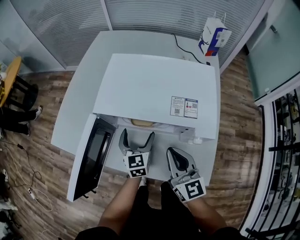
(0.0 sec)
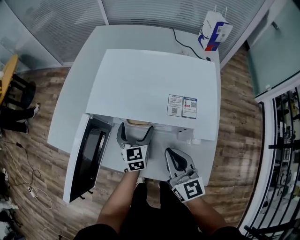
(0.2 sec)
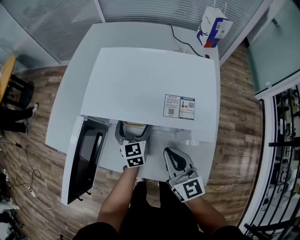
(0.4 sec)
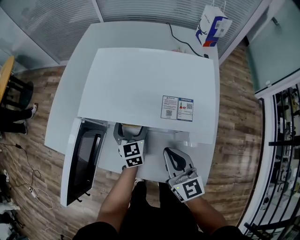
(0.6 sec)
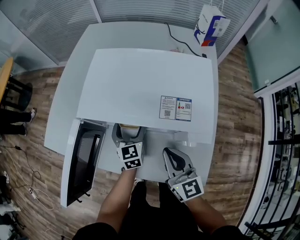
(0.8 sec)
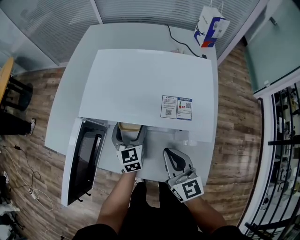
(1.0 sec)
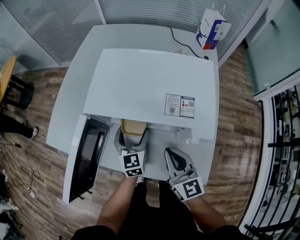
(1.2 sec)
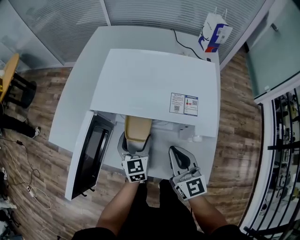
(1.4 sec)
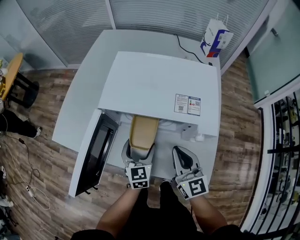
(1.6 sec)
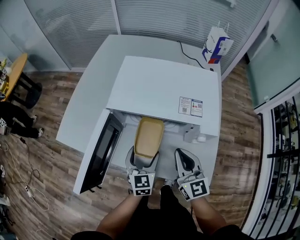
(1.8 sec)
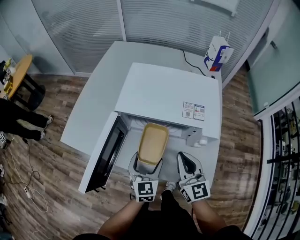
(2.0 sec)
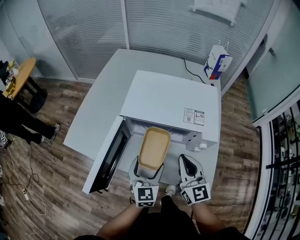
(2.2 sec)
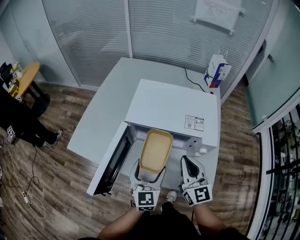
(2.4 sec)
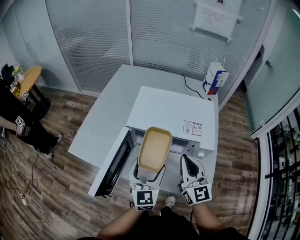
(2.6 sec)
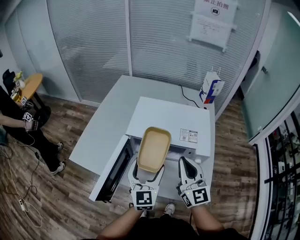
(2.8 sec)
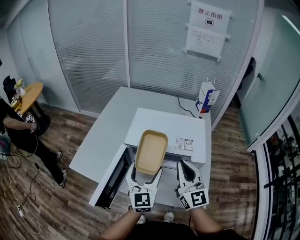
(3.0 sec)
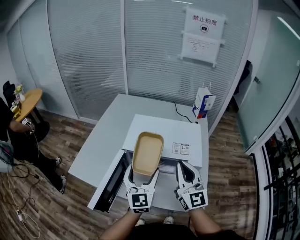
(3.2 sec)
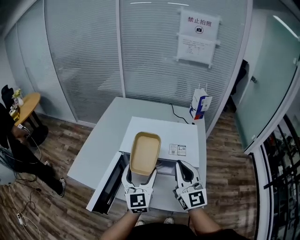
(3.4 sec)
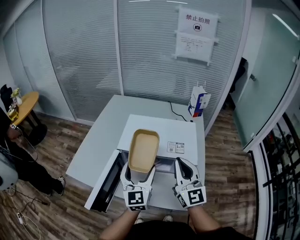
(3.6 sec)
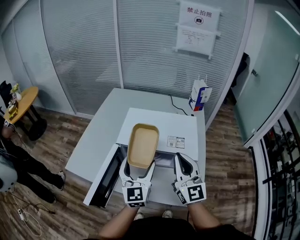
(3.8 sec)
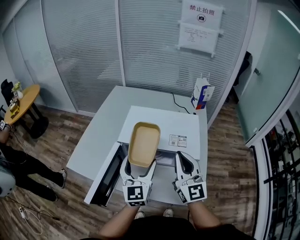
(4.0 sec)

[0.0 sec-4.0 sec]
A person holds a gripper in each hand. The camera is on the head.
0.0 sec to 1.4 sec: The grippers make only small movements.
1.4 sec to 2.6 sec: The left gripper is displaced upward and backward by approximately 20 cm; the right gripper shifts some 10 cm upward.
2.6 sec to 4.0 sec: The grippers both shift upward by some 10 cm.

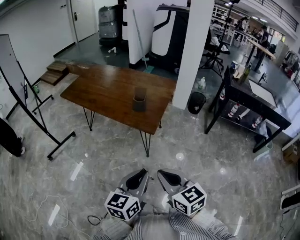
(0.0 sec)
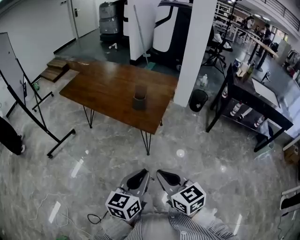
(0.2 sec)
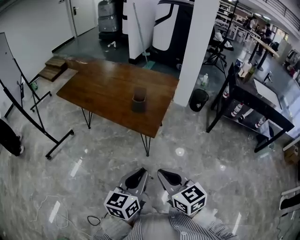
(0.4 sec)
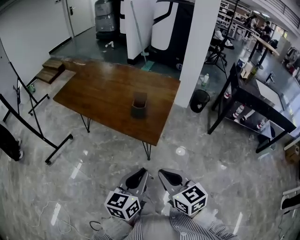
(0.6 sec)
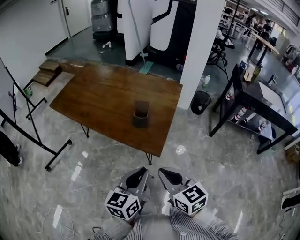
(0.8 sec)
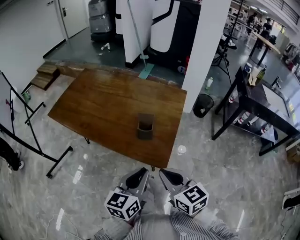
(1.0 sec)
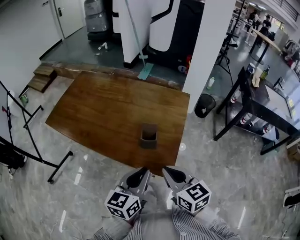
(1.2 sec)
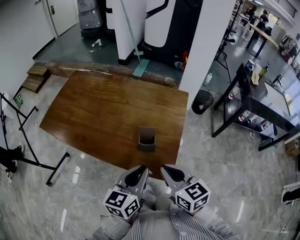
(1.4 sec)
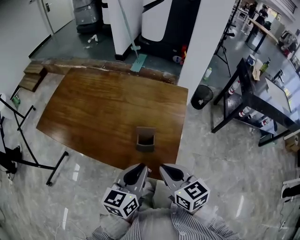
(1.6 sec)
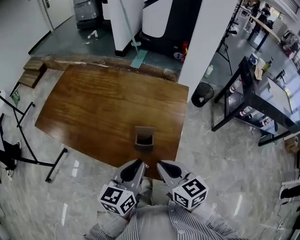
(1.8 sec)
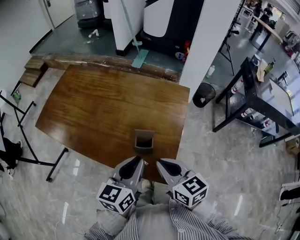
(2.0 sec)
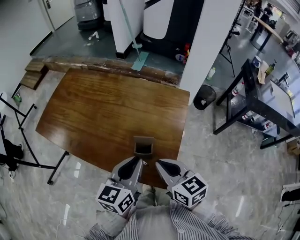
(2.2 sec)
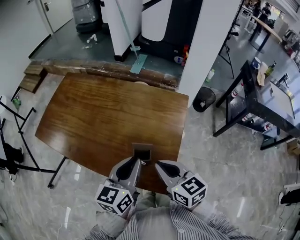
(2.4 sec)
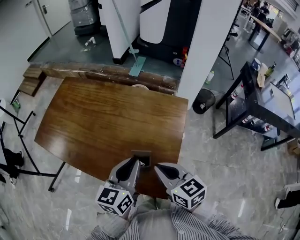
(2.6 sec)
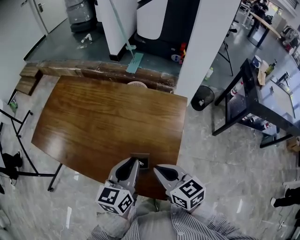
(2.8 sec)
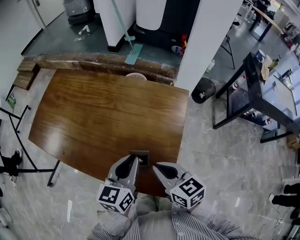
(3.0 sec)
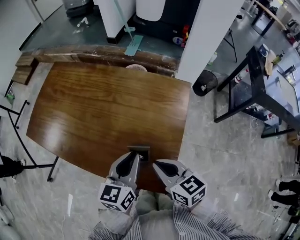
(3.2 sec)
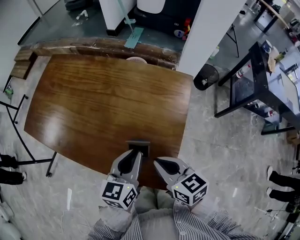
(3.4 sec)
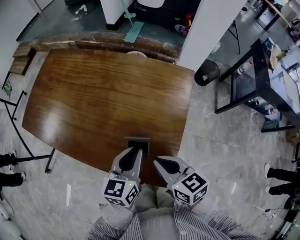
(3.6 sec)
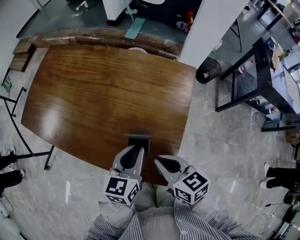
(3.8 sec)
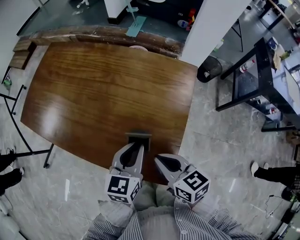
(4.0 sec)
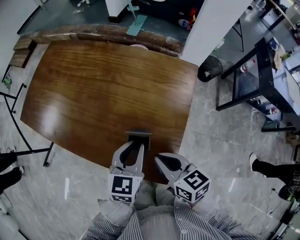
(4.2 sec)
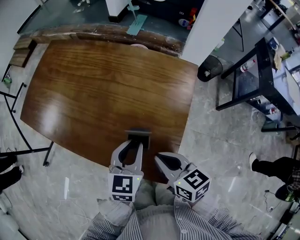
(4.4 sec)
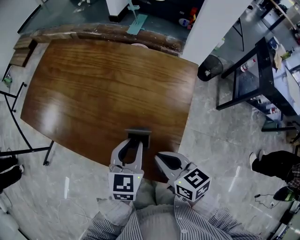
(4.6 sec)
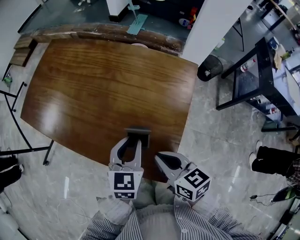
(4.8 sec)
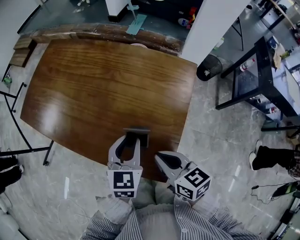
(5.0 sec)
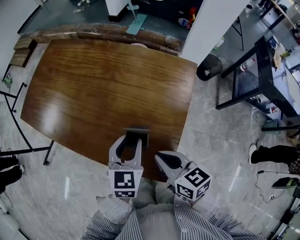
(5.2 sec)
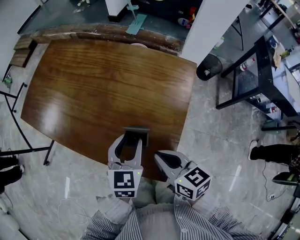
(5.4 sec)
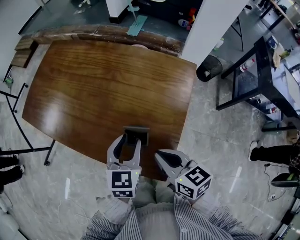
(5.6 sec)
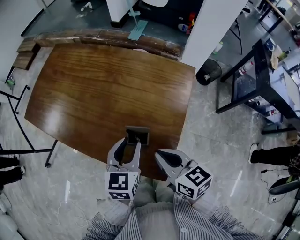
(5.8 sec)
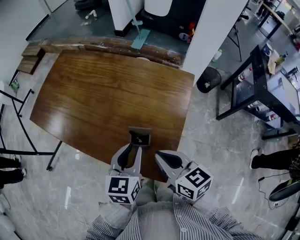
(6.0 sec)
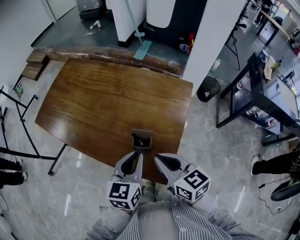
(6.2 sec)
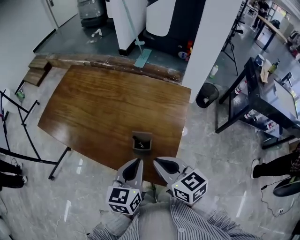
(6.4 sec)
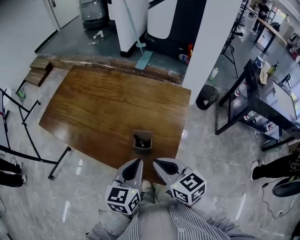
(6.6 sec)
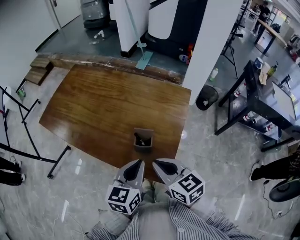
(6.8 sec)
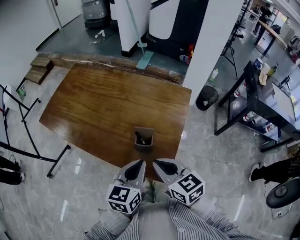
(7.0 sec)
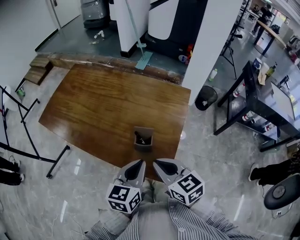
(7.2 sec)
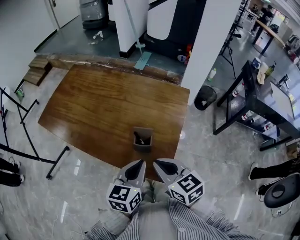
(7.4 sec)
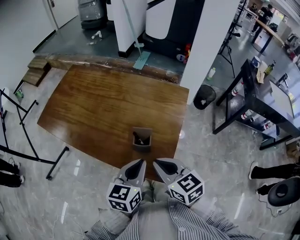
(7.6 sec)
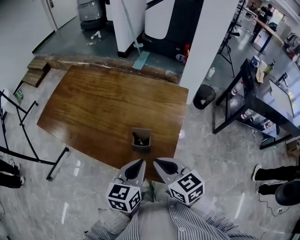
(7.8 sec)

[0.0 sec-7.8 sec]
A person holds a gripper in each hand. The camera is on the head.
0.0 sec to 1.6 sec: The grippers both shift forward by about 40 cm.
1.6 sec to 3.2 sec: The two grippers go some 10 cm forward.
3.2 sec to 4.6 sec: The left gripper heads downward, covering about 5 cm.
4.6 sec to 6.2 sec: The left gripper shifts approximately 10 cm upward and backward. Meanwhile the right gripper shifts about 5 cm upward.
6.2 sec to 7.8 sec: The grippers stay close to where they were, moving slightly.

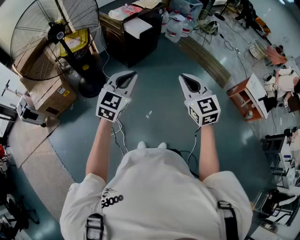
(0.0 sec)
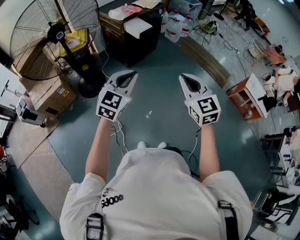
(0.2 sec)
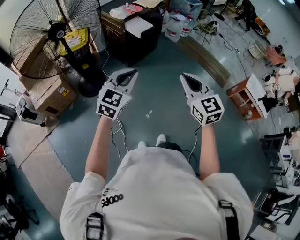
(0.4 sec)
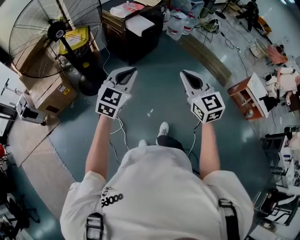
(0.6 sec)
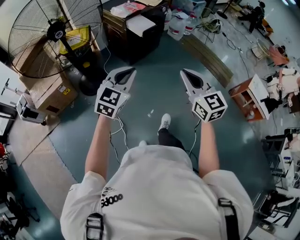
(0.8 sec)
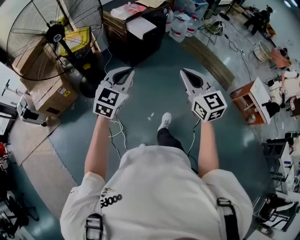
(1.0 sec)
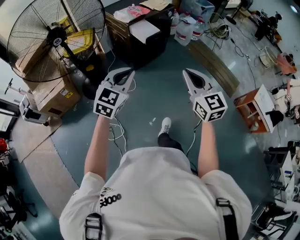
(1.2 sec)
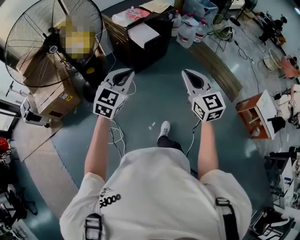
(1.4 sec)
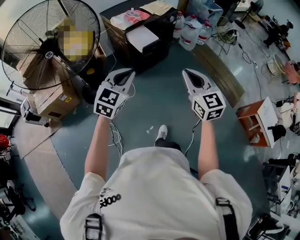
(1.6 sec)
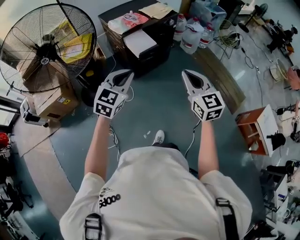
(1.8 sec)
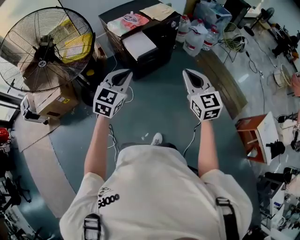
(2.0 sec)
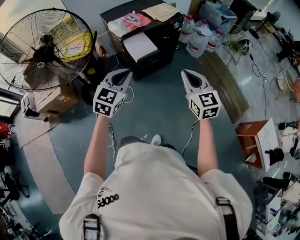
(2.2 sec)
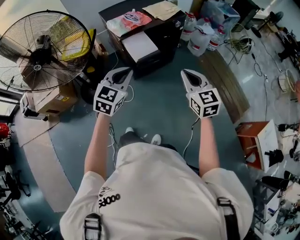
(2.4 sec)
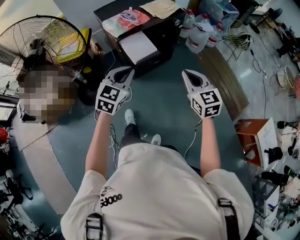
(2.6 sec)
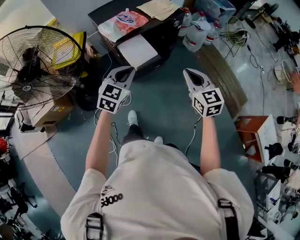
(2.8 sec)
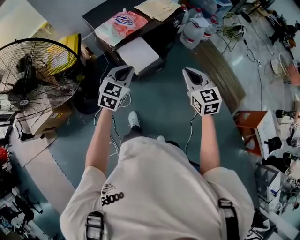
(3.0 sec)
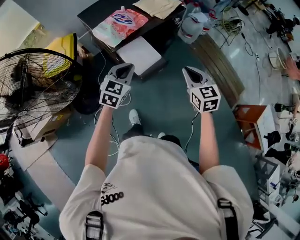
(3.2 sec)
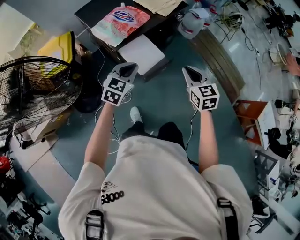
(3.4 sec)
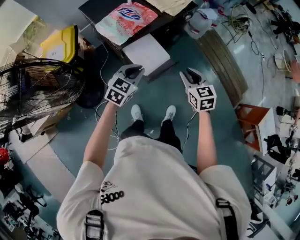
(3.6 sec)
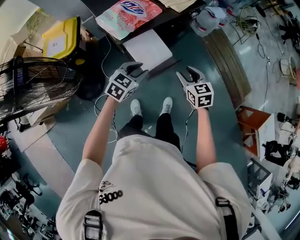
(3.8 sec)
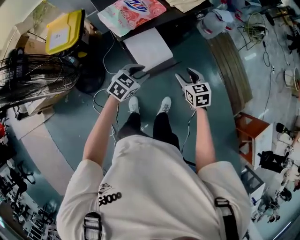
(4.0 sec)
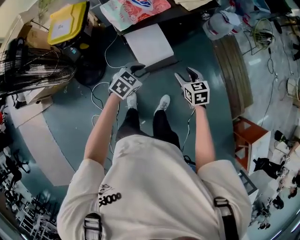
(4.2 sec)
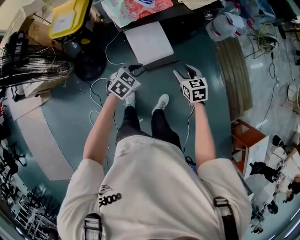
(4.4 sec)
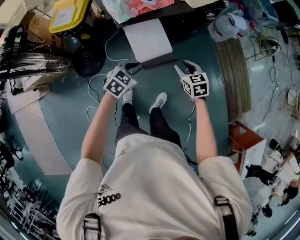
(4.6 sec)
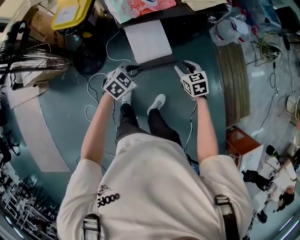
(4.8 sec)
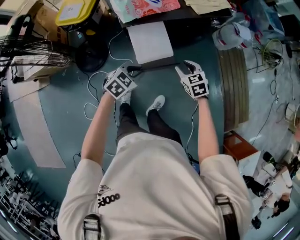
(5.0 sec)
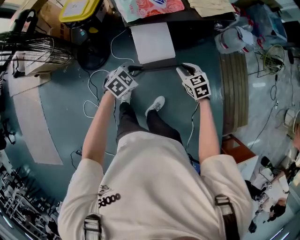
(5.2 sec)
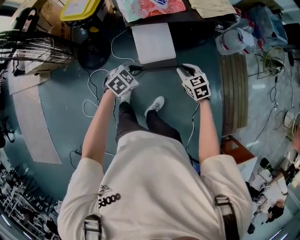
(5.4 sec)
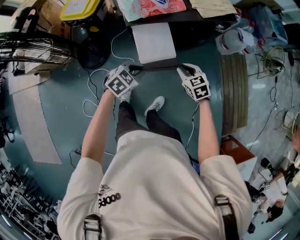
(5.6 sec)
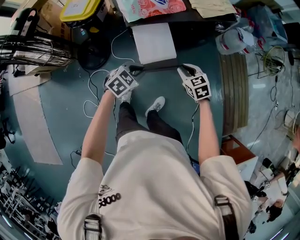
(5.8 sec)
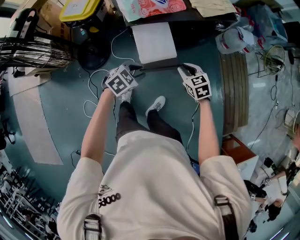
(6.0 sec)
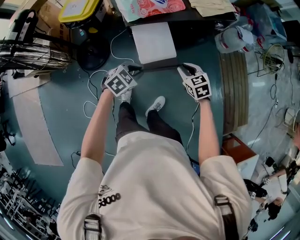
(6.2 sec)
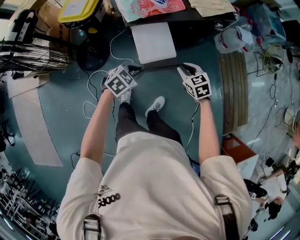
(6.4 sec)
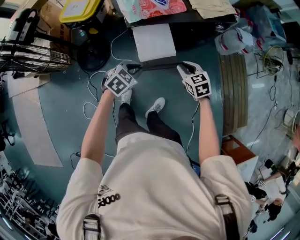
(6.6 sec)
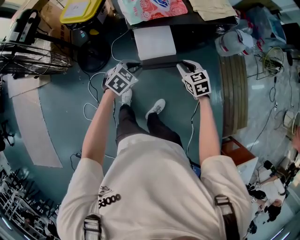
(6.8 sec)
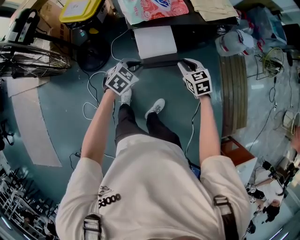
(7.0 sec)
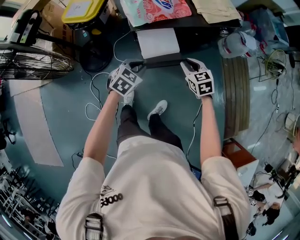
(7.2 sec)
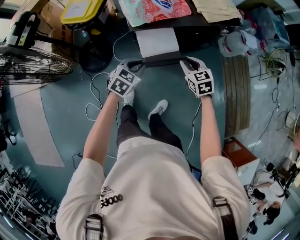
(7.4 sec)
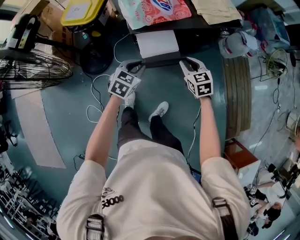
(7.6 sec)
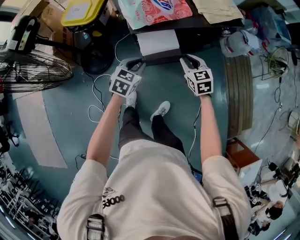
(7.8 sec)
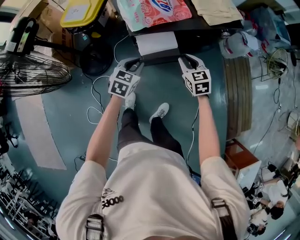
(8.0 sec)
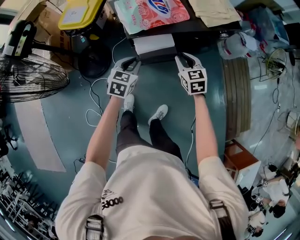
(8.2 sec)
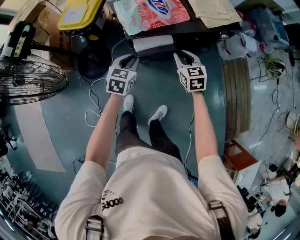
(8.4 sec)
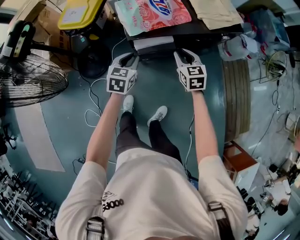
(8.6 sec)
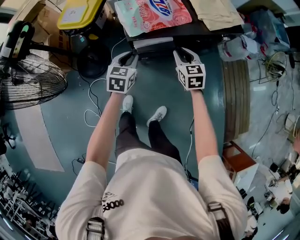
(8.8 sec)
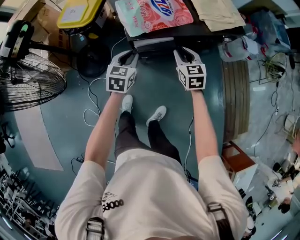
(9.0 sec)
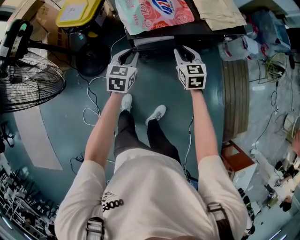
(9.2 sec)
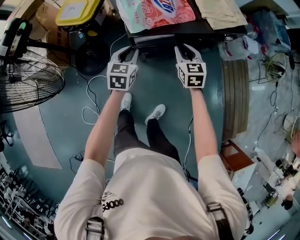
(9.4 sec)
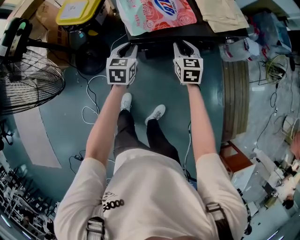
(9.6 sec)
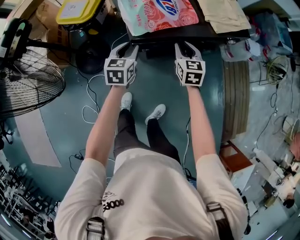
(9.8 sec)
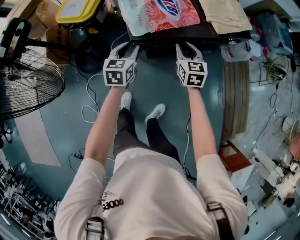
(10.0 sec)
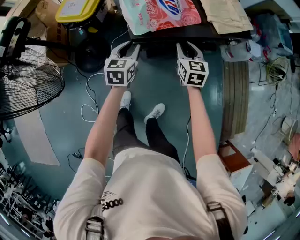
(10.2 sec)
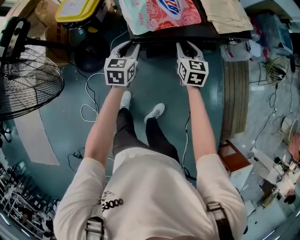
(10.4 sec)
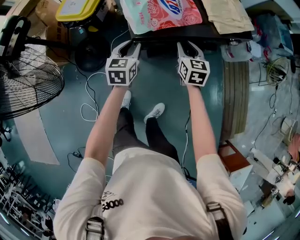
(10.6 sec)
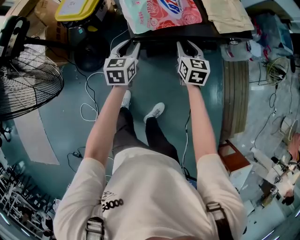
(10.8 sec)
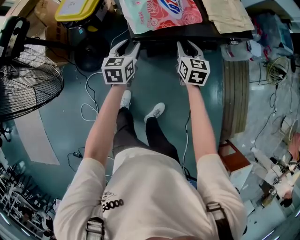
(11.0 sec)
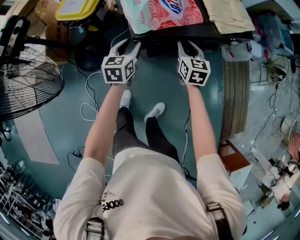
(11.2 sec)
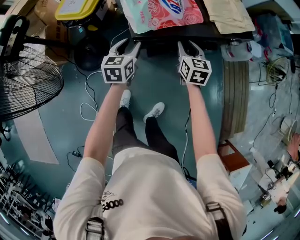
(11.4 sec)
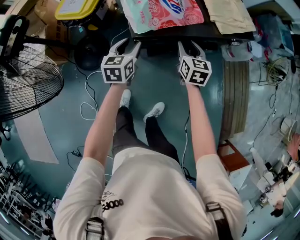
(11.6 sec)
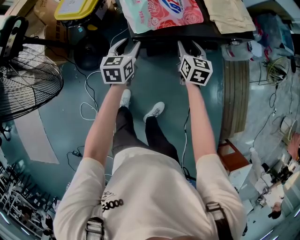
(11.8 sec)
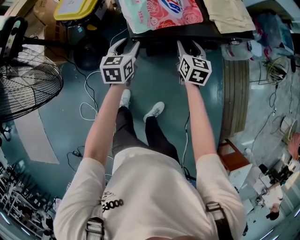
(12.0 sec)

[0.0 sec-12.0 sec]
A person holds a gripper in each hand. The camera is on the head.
0.0 sec to 1.6 sec: The two grippers go some 30 cm forward.
1.6 sec to 3.0 sec: The two grippers go approximately 40 cm forward.
3.0 sec to 4.4 sec: The left gripper heads downward, covering about 20 cm, swivels roughly 20 degrees, and opens, while the right gripper travels downward and forward by about 25 cm, rotates approximately 30 degrees, and opens up.
4.4 sec to 6.0 sec: The right gripper closes its fingers.
6.0 sec to 7.6 sec: Both grippers travel together forward, roughly 5 cm. The left gripper swivels about 20 degrees.
7.6 sec to 9.0 sec: The grippers both shift forward by roughly 10 cm. The left gripper turns by about 20 degrees.
9.0 sec to 12.0 sec: There are only small adjustments of the grippers.
